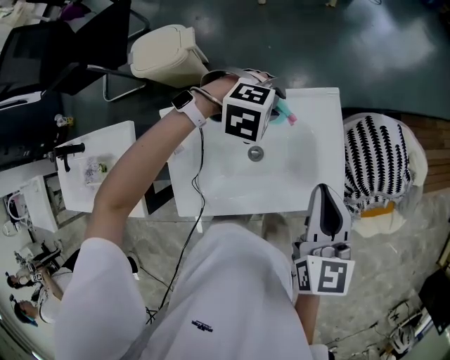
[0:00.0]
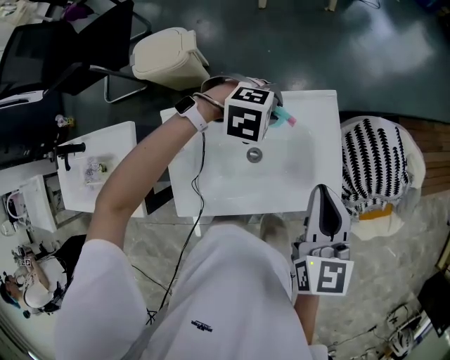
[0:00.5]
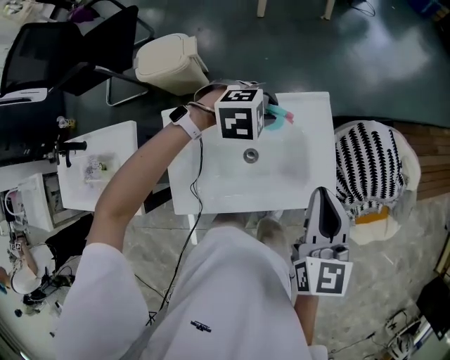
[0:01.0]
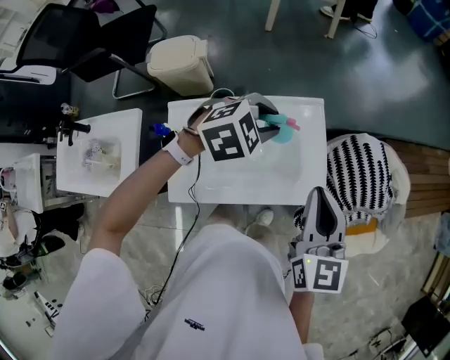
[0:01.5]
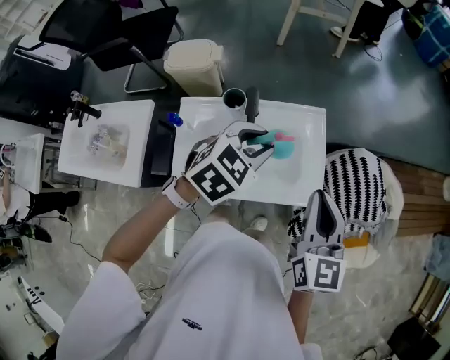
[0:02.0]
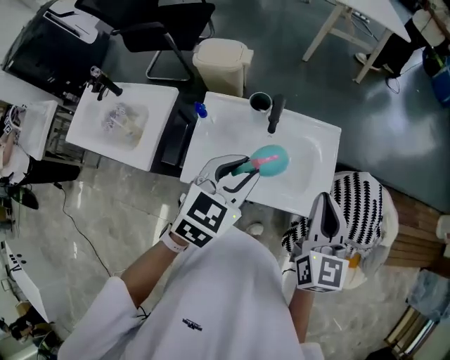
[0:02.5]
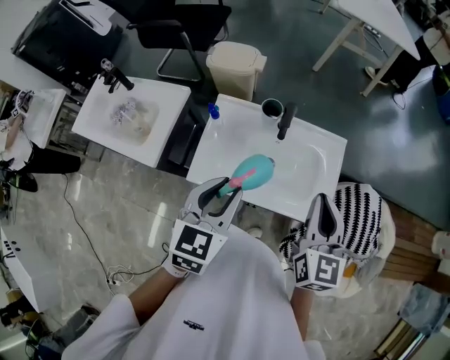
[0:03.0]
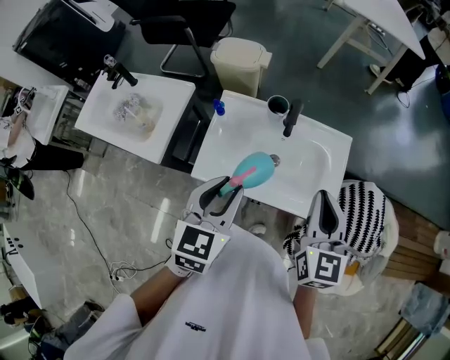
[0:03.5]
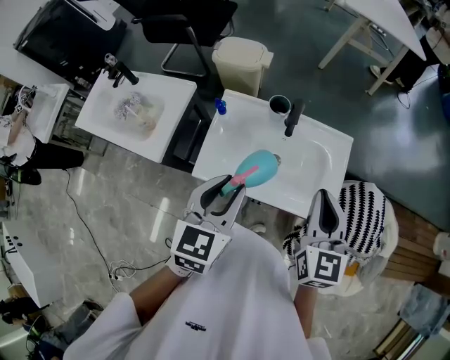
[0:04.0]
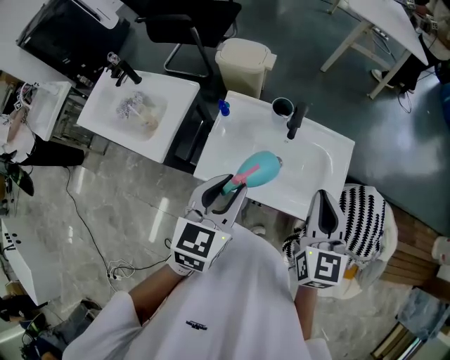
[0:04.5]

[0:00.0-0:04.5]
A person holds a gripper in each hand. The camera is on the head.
0:00.0 to 0:02.0: The right gripper heads to the right, upward and backward, covering some 15 cm. Meanwhile the left gripper travels upward, backward and to the right by about 25 cm, and twists roughly 50 degrees counterclockwise, seen from behind.
0:02.0 to 0:04.5: The left gripper changes place by approximately 20 cm, and changes its angle by approximately 50 degrees. The right gripper ends up approximately 10 cm from where it was.

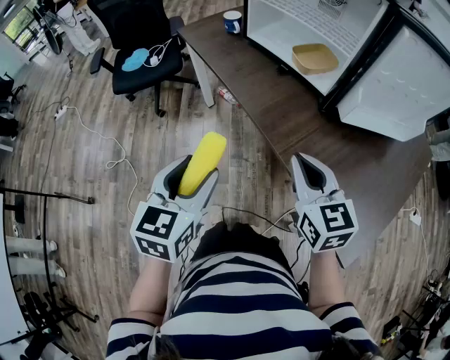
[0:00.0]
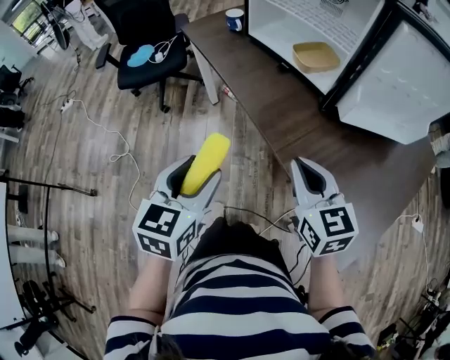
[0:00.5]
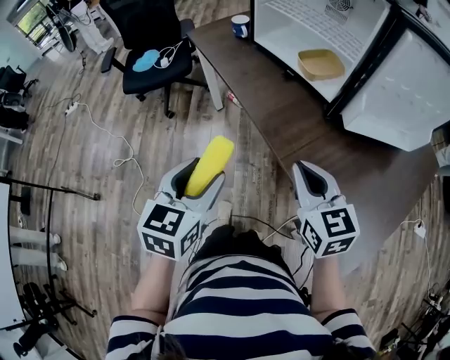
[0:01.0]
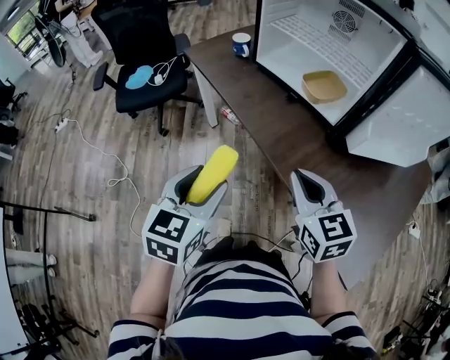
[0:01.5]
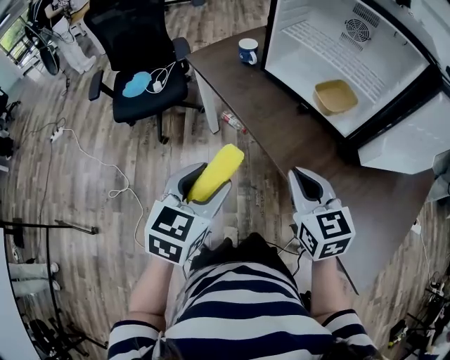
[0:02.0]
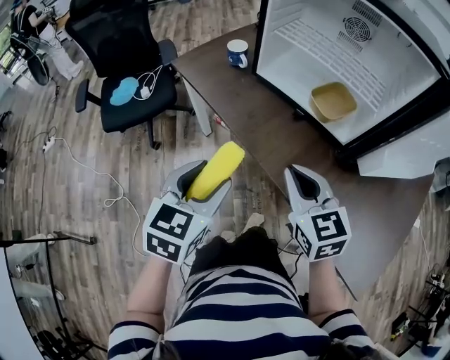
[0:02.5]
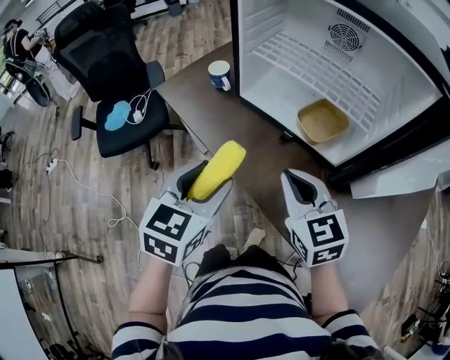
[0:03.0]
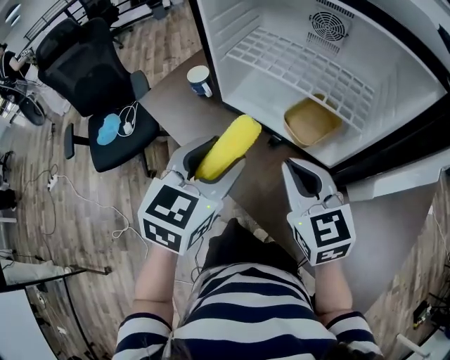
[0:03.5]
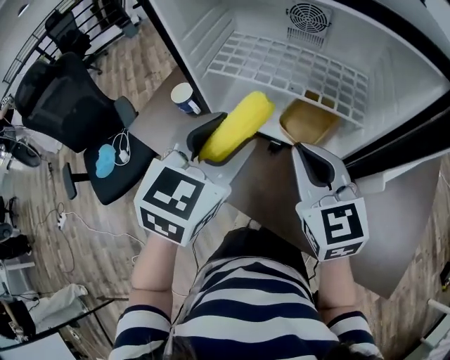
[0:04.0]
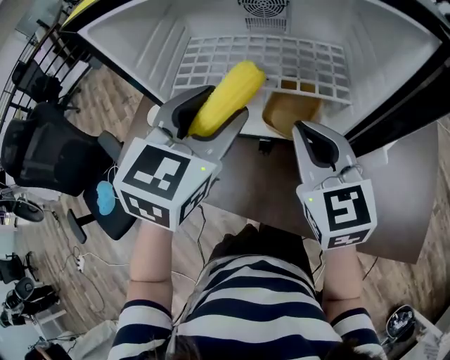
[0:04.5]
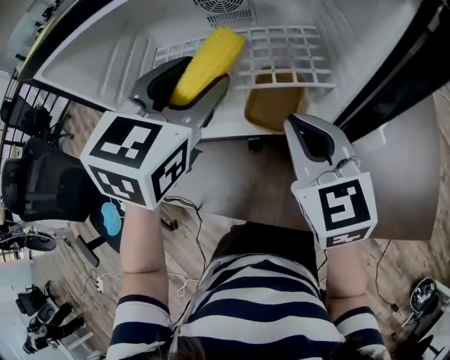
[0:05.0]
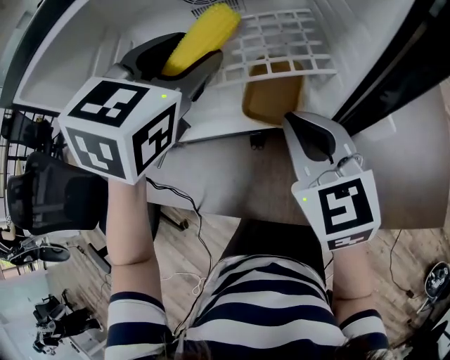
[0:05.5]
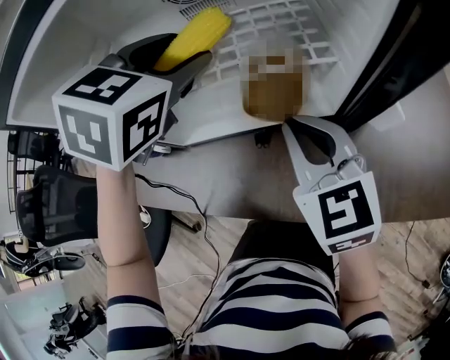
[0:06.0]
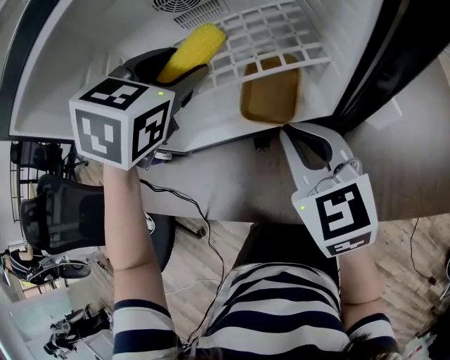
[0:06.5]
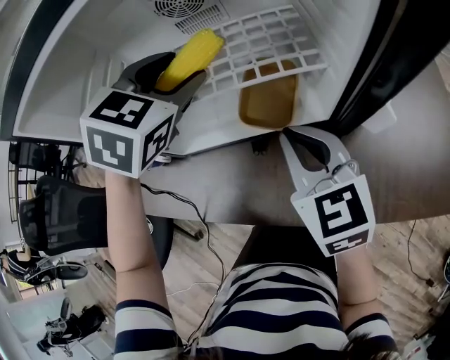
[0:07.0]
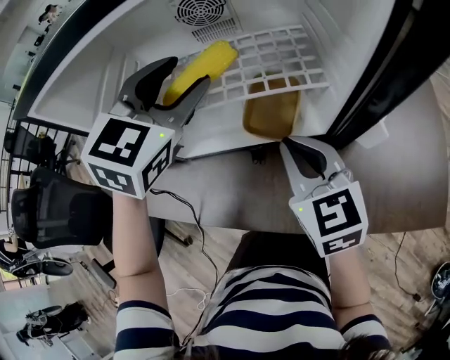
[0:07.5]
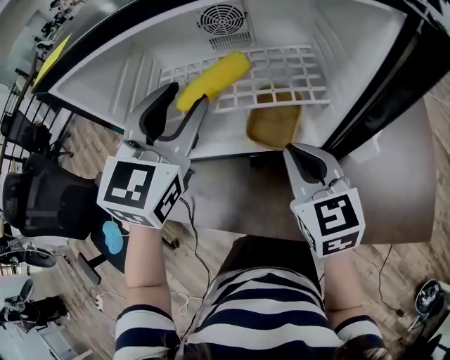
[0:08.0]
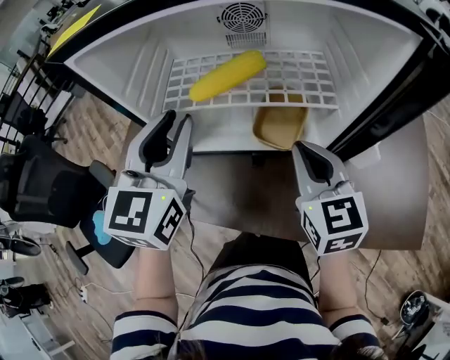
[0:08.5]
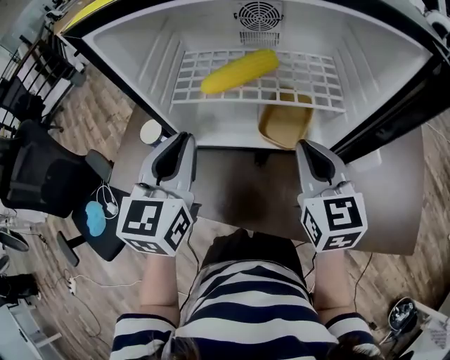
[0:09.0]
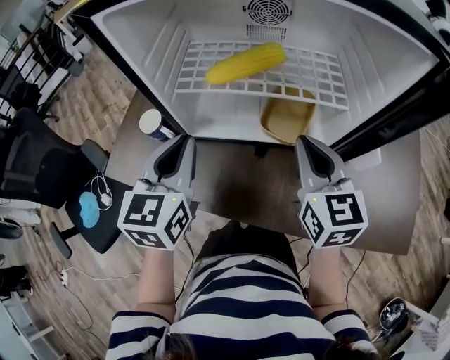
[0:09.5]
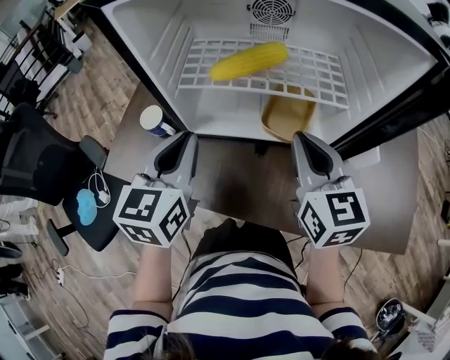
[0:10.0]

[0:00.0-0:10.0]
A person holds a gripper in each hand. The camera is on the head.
0:00.0 to 0:02.0: The two grippers go about 15 cm forward and to the left.
0:02.0 to 0:04.0: The right gripper goes approximately 25 cm forward, and turns by approximately 20 degrees. The left gripper is displaced forward and to the right by about 35 cm, and swivels some 30 degrees.
0:04.0 to 0:06.0: The left gripper shifts approximately 15 cm forward, and rotates some 30 degrees. Meanwhile the right gripper travels downward by roughly 5 cm, and rotates some 20 degrees.
0:06.0 to 0:08.0: The left gripper goes roughly 5 cm backward, and turns by some 30 degrees.
0:08.0 to 0:10.0: The left gripper travels to the left, downward and backward by roughly 15 cm, and changes its angle by approximately 30 degrees.

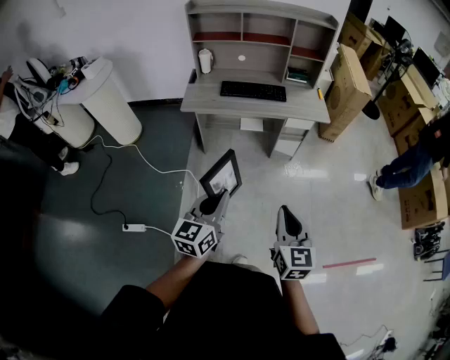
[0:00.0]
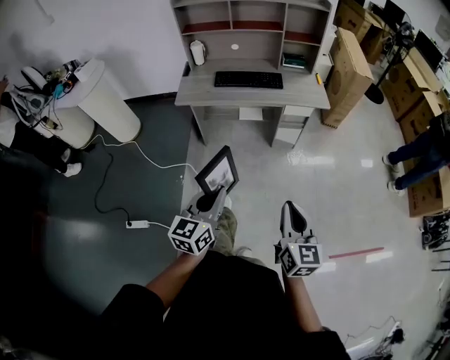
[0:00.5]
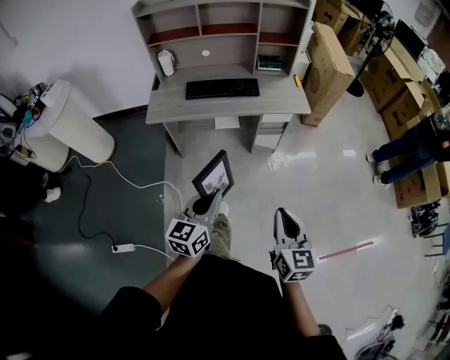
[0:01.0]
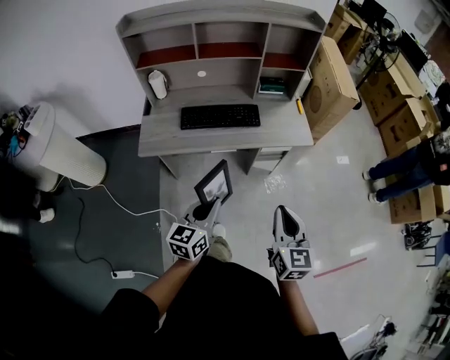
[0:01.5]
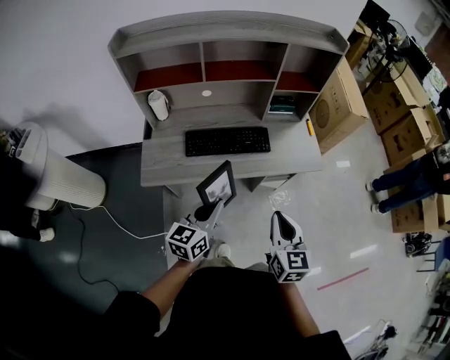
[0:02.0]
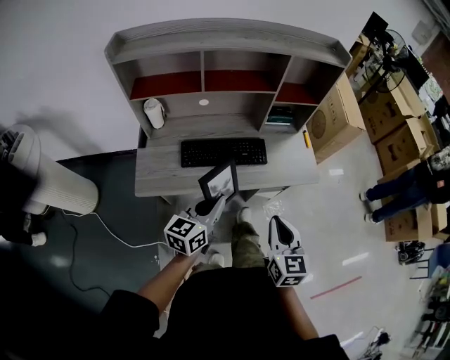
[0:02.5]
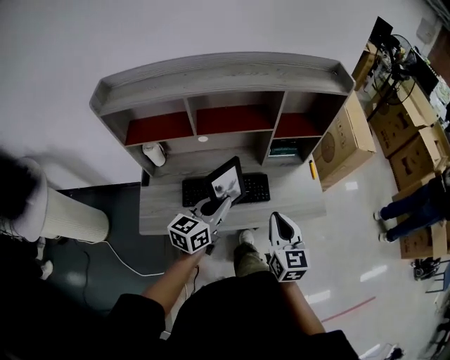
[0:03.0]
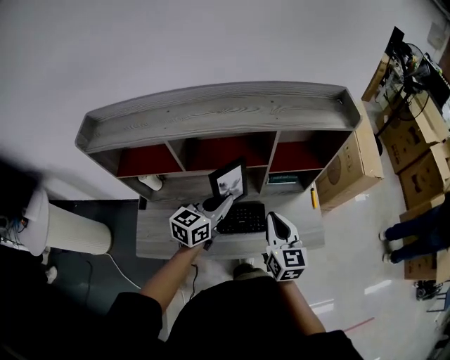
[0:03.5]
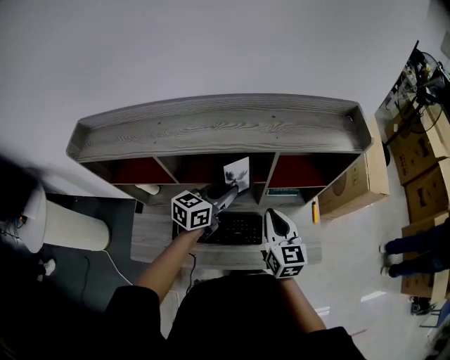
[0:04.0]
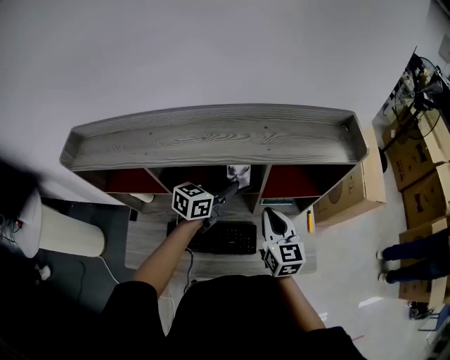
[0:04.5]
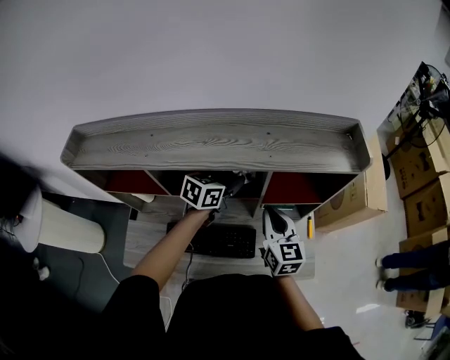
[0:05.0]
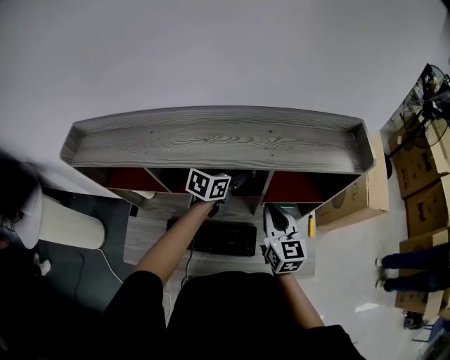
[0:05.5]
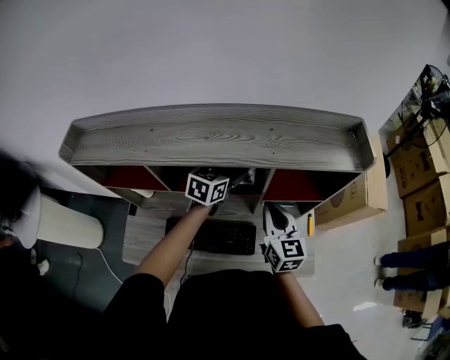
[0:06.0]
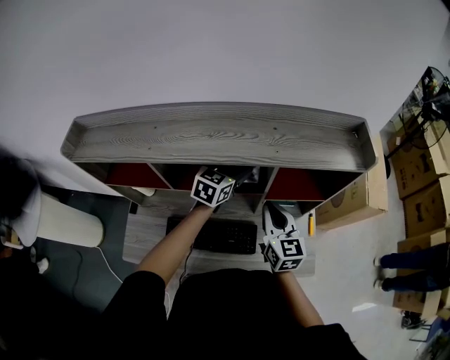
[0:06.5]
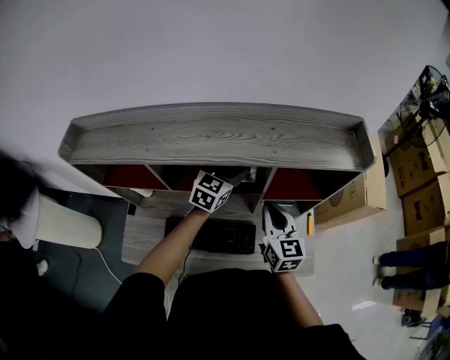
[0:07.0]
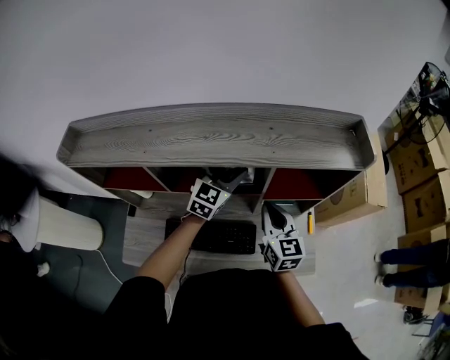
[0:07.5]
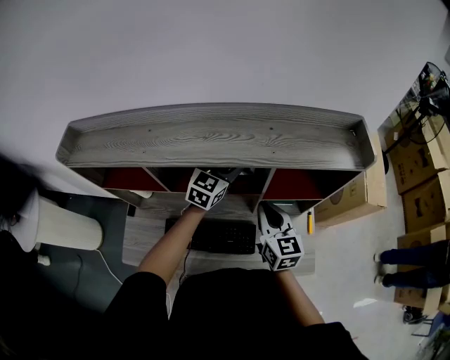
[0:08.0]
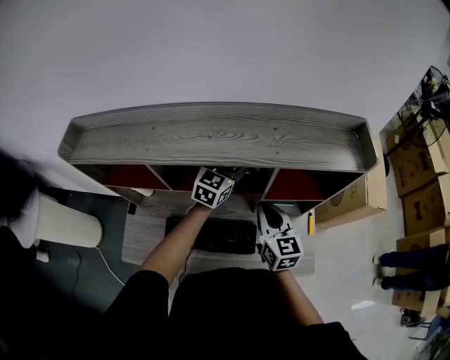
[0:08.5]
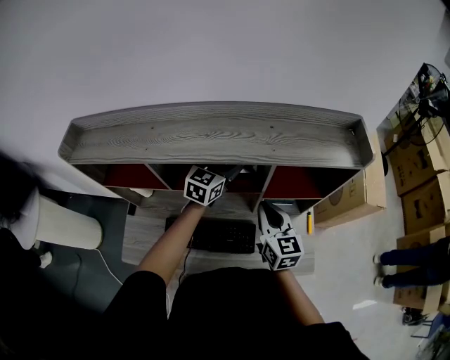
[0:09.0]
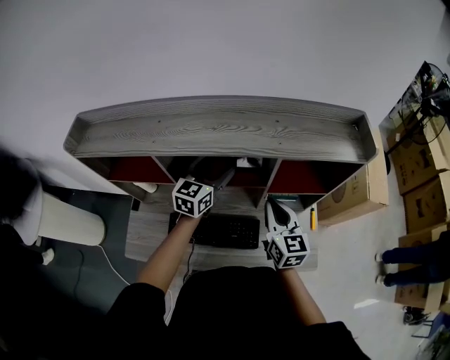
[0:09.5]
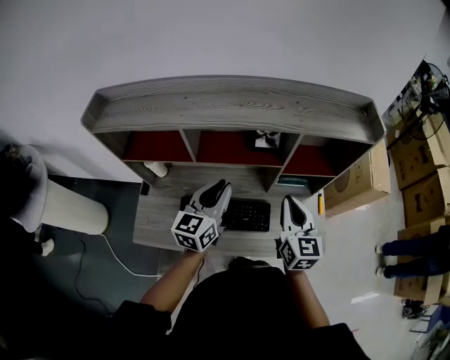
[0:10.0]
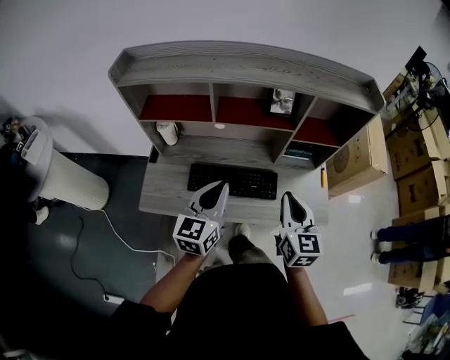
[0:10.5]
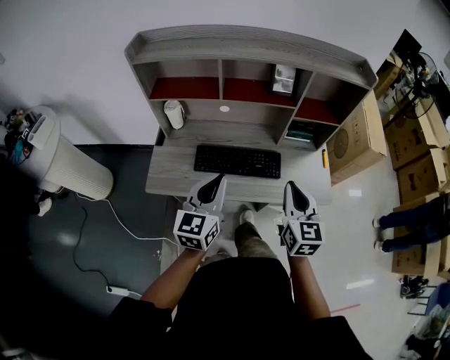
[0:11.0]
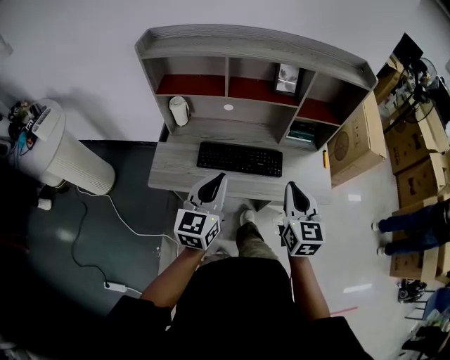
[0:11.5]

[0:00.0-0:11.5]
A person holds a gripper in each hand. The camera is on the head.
0:00.0 to 0:02.0: The pair of grippers is taken forward, some 50 cm.
0:02.0 to 0:04.0: The two grippers travel together, forward, about 50 cm.
0:04.0 to 0:06.0: The left gripper goes approximately 10 cm forward, and opens. The right gripper moves forward, some 5 cm.
0:06.0 to 0:07.5: The left gripper rotates some 30 degrees.
0:07.5 to 0:09.5: The left gripper goes about 5 cm to the left.
0:09.5 to 0:11.5: Both grippers travel together backward, roughly 40 cm. The left gripper closes its fingers.

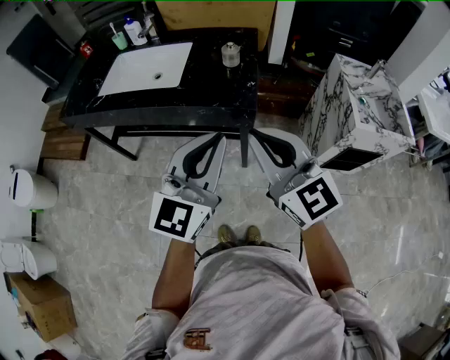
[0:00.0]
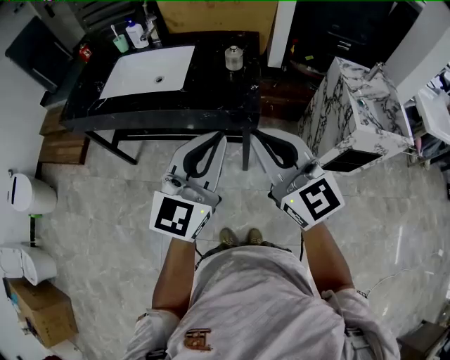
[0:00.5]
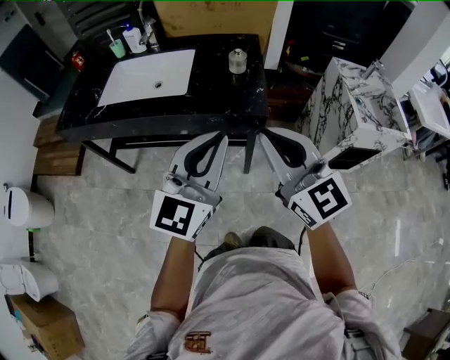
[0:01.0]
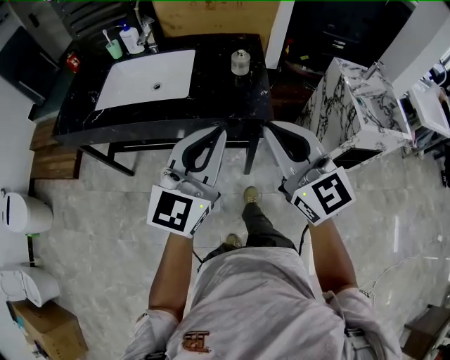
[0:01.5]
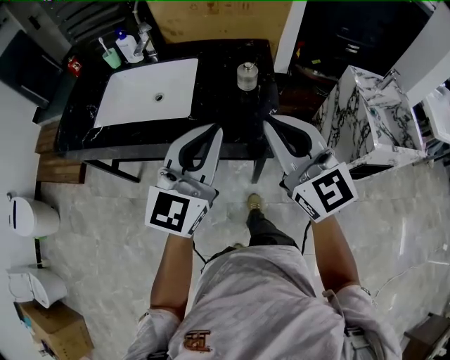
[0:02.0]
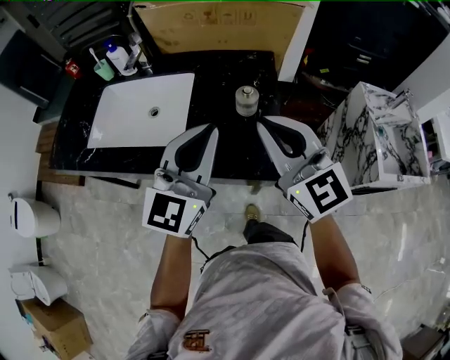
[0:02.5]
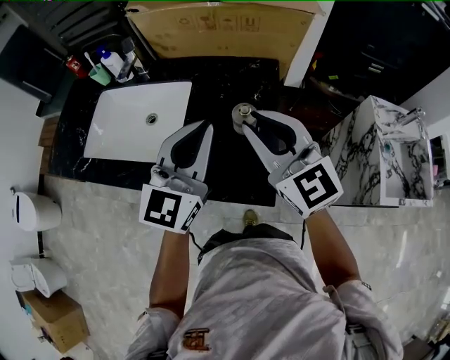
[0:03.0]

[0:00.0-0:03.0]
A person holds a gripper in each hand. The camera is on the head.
0:00.0 to 0:01.5: The left gripper moves to the left and forward, approximately 10 cm; the right gripper travels to the left by about 5 cm.
0:01.5 to 0:03.0: The grippers both shift forward by about 30 cm.
